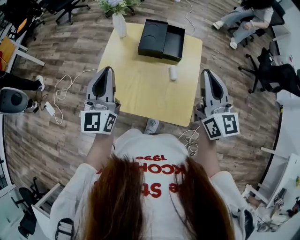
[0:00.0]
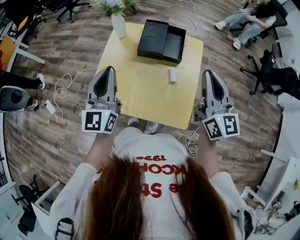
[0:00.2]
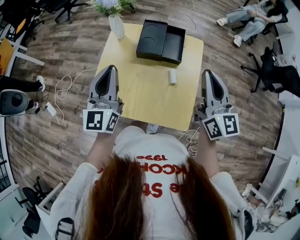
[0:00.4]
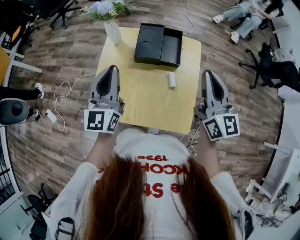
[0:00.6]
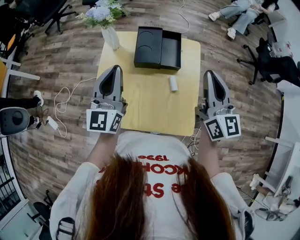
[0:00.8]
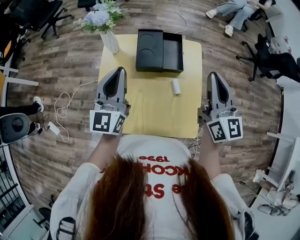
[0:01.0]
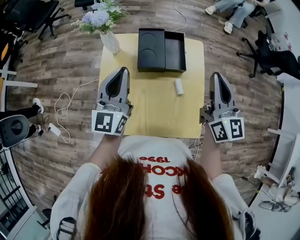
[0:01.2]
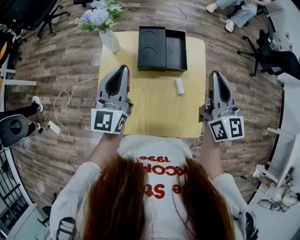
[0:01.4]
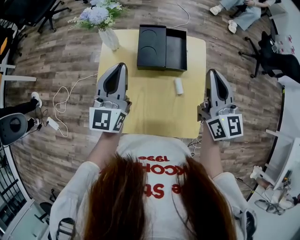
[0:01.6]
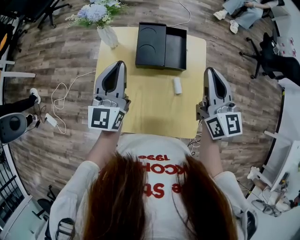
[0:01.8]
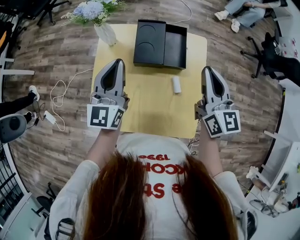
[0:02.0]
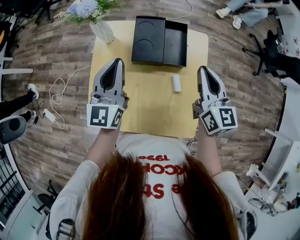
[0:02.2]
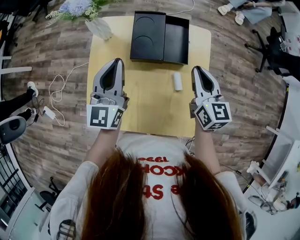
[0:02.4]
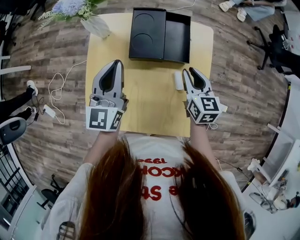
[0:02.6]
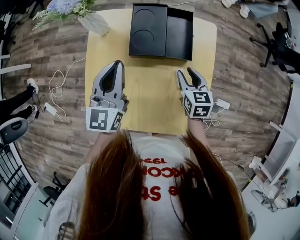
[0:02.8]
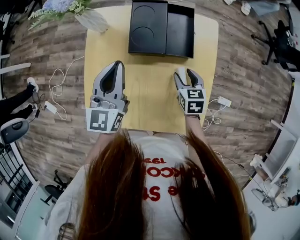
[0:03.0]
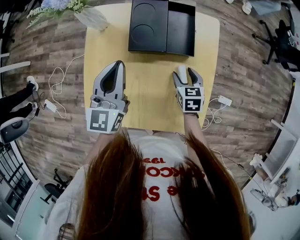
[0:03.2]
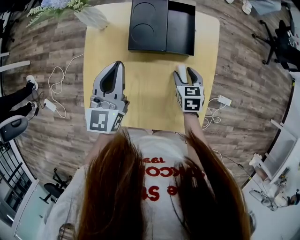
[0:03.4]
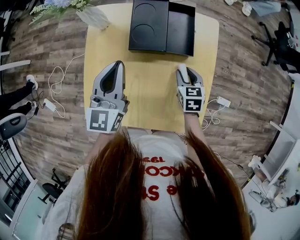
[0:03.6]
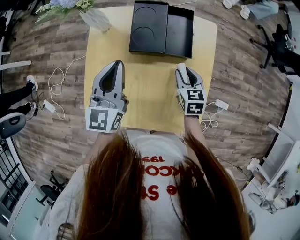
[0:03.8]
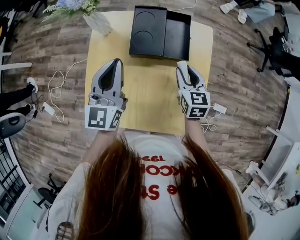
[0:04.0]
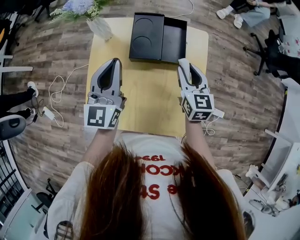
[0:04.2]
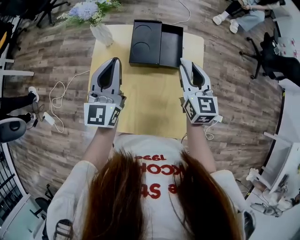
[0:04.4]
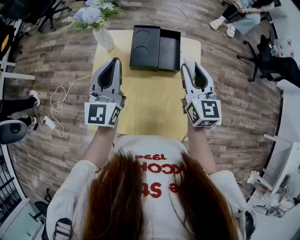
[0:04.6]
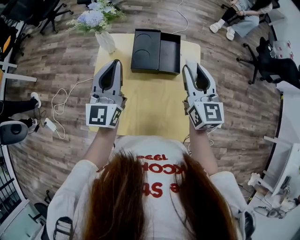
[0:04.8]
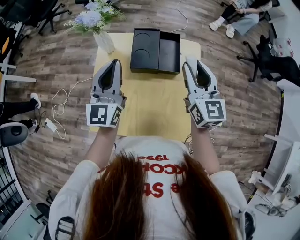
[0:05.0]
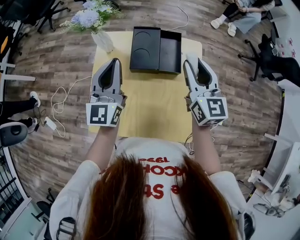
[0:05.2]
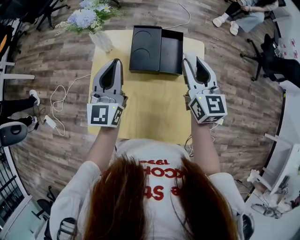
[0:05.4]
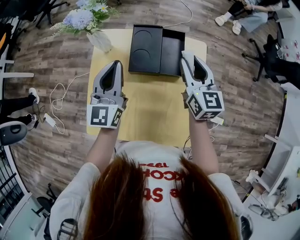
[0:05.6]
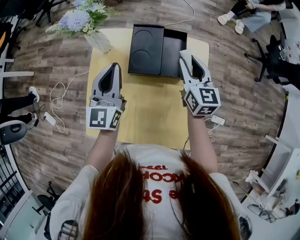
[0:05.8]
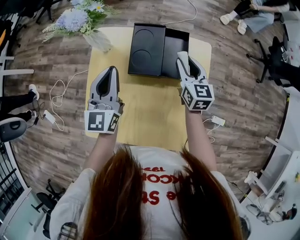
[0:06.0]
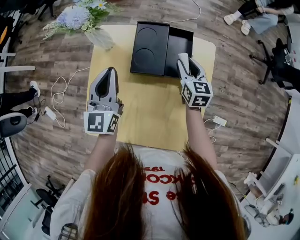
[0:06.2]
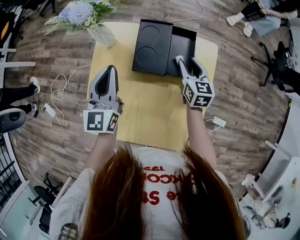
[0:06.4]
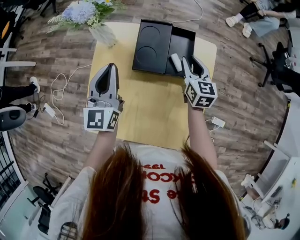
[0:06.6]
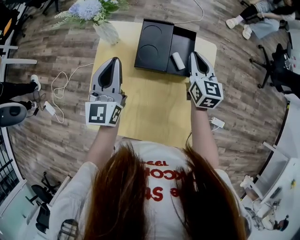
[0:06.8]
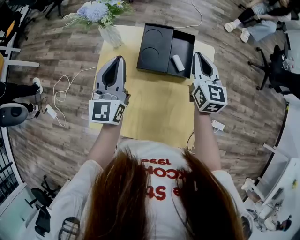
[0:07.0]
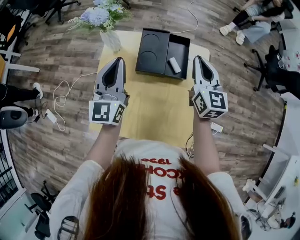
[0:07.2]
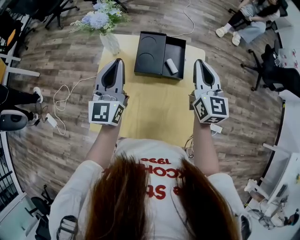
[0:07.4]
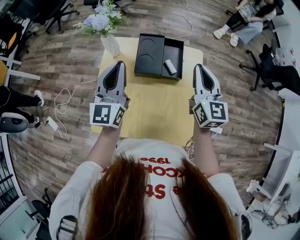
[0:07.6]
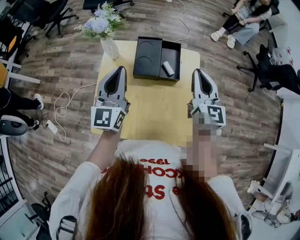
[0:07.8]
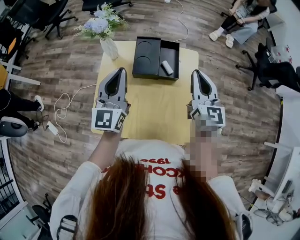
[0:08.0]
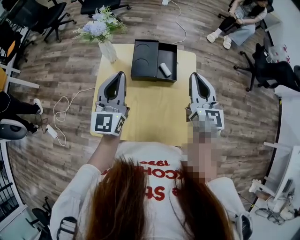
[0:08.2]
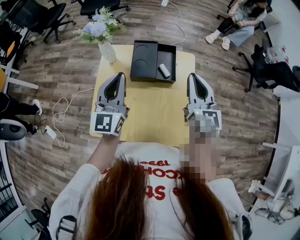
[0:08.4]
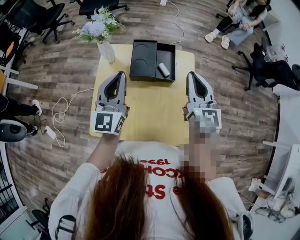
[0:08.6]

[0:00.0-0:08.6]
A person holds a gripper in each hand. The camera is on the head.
0:00.0 to 0:01.4: The left gripper is displaced forward by some 15 cm, while the right gripper heads forward, covering roughly 10 cm.
0:01.4 to 0:02.8: The left gripper goes approximately 10 cm downward. The right gripper goes roughly 30 cm downward, tips its fingers downward by some 40 degrees, and opens.
0:02.8 to 0:04.4: The left gripper shifts approximately 5 cm upward. The right gripper heads upward, covering about 15 cm, turns by about 20 degrees, and opens and closes again.
0:04.4 to 0:05.8: The right gripper moves forward, roughly 10 cm, and goes upward and returns, roughly 10 cm each way. Meanwhile the left gripper changes place by approximately 5 cm.
0:05.8 to 0:07.2: The right gripper moves upward, roughly 5 cm, and closes up. Meanwhile the left gripper moves roughly 5 cm.
0:07.2 to 0:08.6: The left gripper ends up about 5 cm from where it was; the right gripper travels backward and upward by some 10 cm.

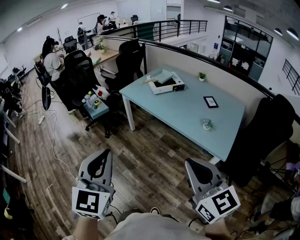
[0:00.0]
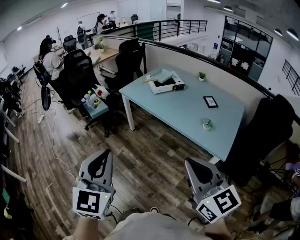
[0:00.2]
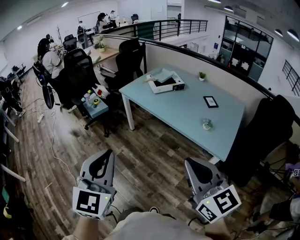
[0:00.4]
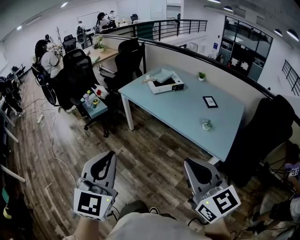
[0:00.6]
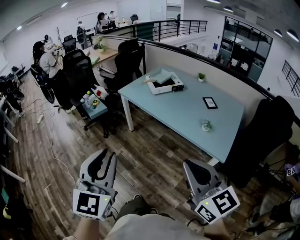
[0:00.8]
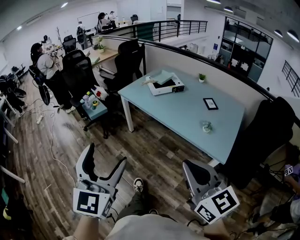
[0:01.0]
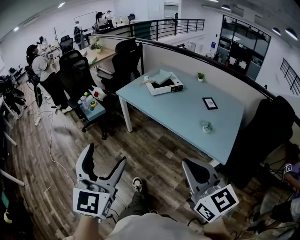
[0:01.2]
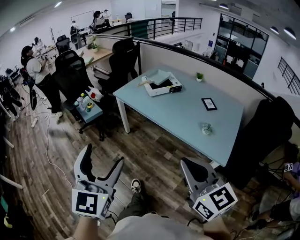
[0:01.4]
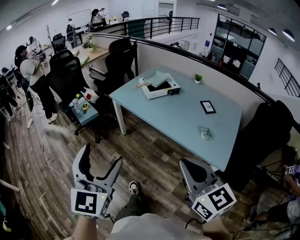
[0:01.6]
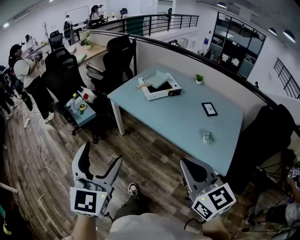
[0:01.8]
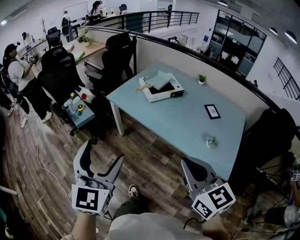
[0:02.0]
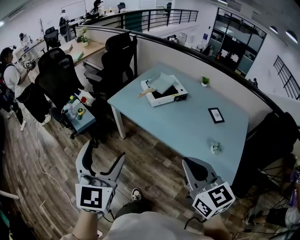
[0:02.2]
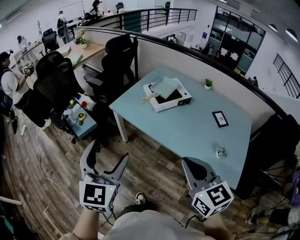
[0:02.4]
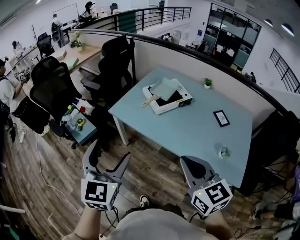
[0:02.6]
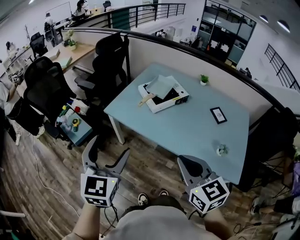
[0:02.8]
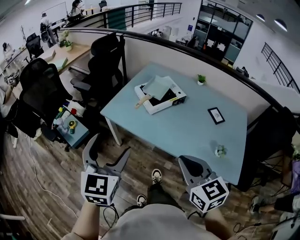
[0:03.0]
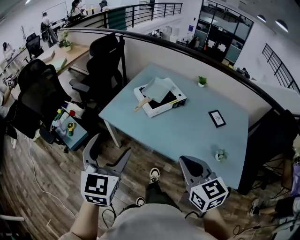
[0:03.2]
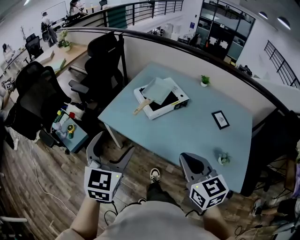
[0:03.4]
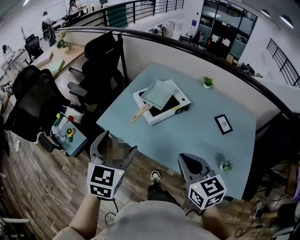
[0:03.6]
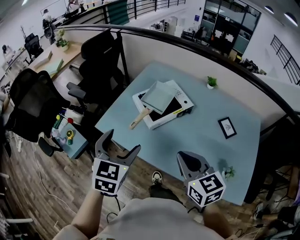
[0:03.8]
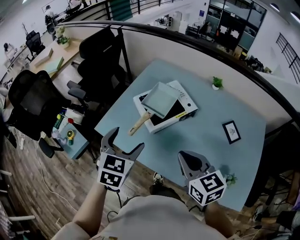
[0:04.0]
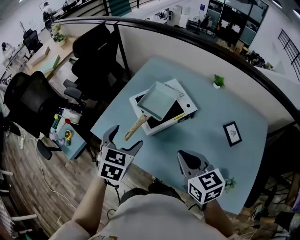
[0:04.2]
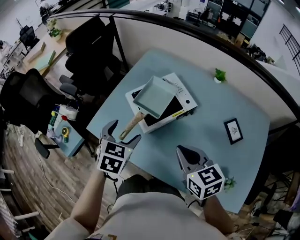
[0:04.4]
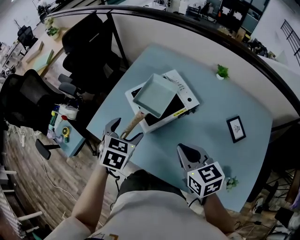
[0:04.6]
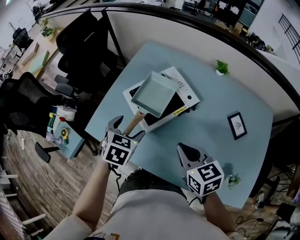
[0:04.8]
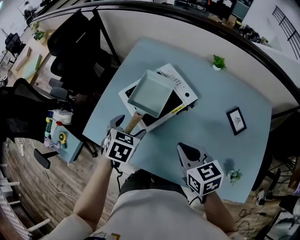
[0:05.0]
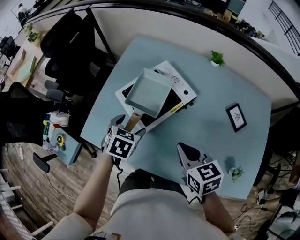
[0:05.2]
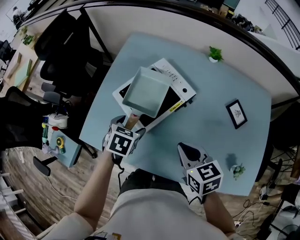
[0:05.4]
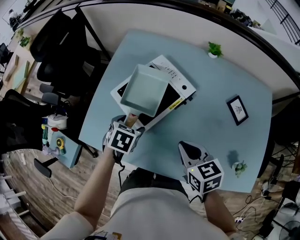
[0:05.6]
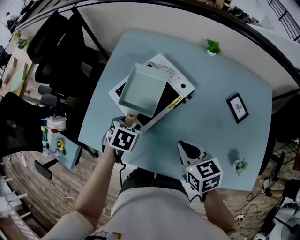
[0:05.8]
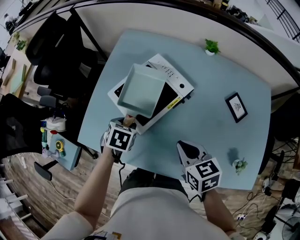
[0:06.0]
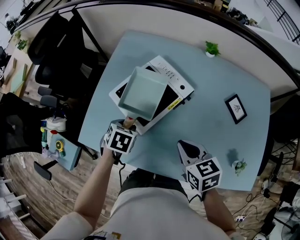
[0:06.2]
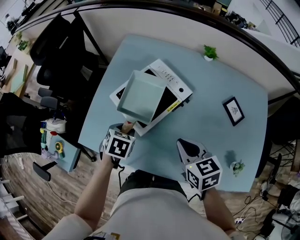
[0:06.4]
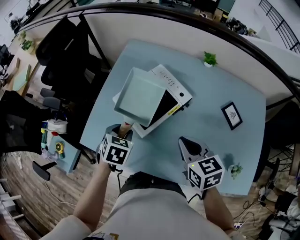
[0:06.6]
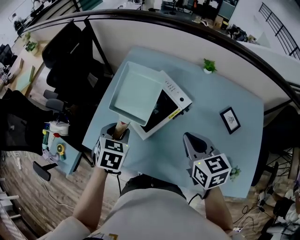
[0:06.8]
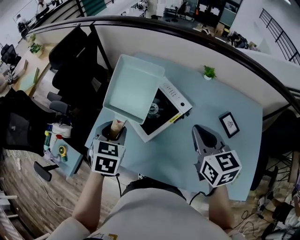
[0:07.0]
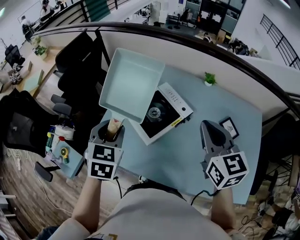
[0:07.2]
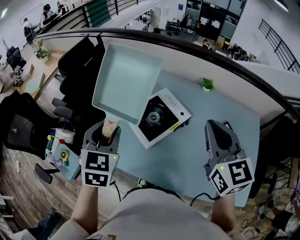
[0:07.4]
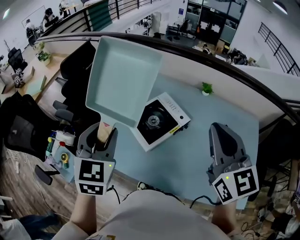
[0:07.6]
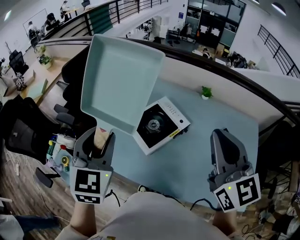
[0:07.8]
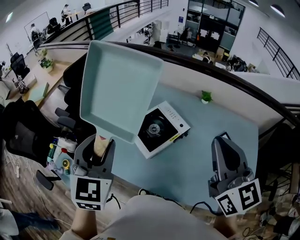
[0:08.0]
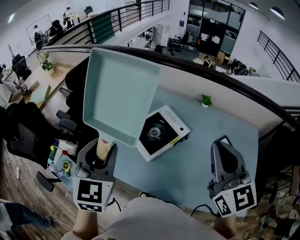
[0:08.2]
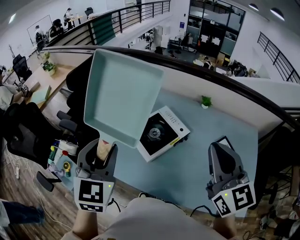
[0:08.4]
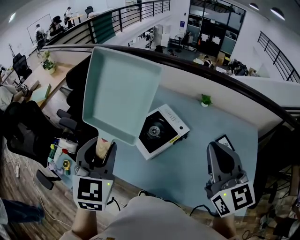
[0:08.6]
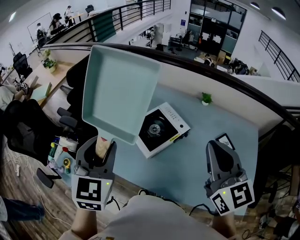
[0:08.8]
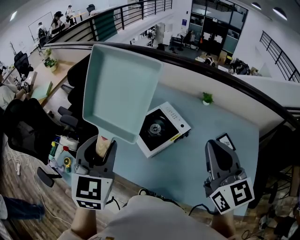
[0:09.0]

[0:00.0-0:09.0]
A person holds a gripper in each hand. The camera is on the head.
0:00.0 to 0:01.6: The two grippers go some 15 cm forward. The left gripper opens.
0:01.6 to 0:03.0: Both grippers move forward, approximately 35 cm.
0:03.0 to 0:04.4: The right gripper goes about 30 cm forward; the left gripper is displaced forward, downward and to the right by approximately 40 cm, and tilts its fingers about 30 degrees downward.
0:04.4 to 0:06.0: The left gripper goes about 20 cm downward and forward, changes its angle by approximately 30 degrees, and closes, while the right gripper travels downward by some 10 cm.
0:06.0 to 0:07.6: Both grippers move upward, about 35 cm. The right gripper points its fingers some 40 degrees further upward; the left gripper tips its fingers upward by about 40 degrees.
0:07.6 to 0:09.0: The left gripper moves approximately 5 cm.

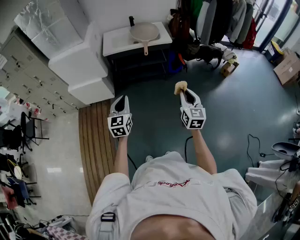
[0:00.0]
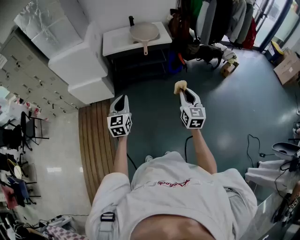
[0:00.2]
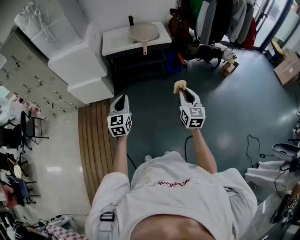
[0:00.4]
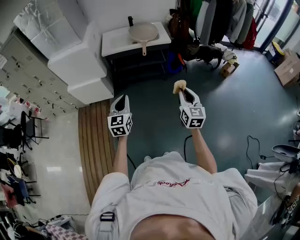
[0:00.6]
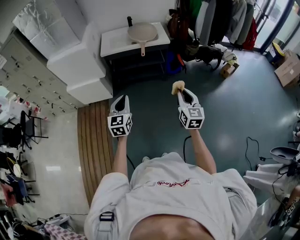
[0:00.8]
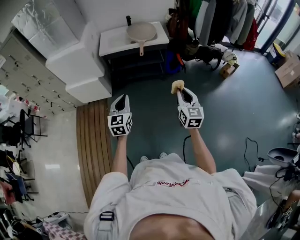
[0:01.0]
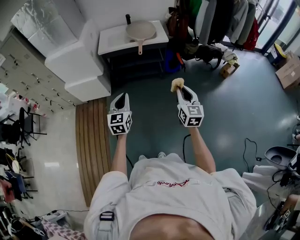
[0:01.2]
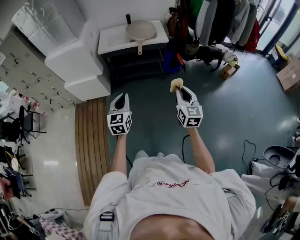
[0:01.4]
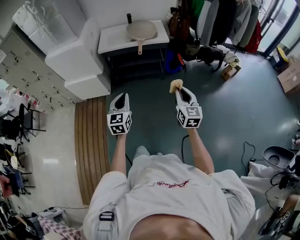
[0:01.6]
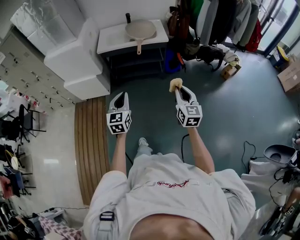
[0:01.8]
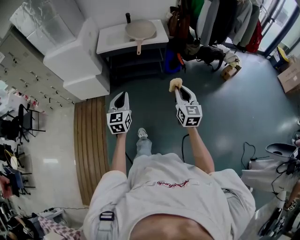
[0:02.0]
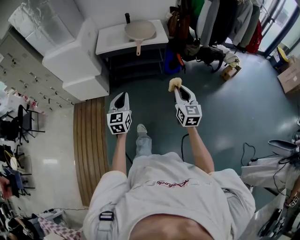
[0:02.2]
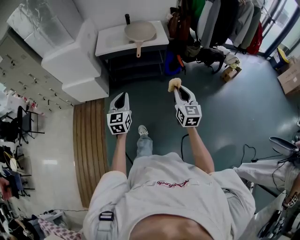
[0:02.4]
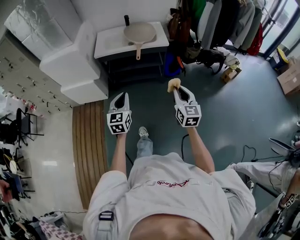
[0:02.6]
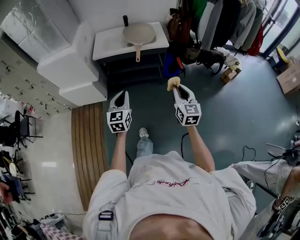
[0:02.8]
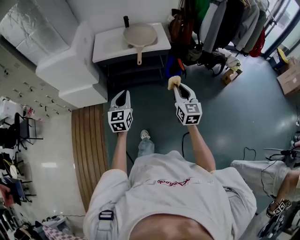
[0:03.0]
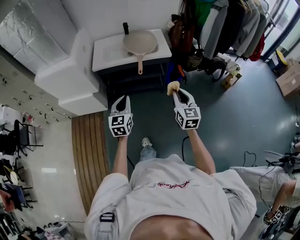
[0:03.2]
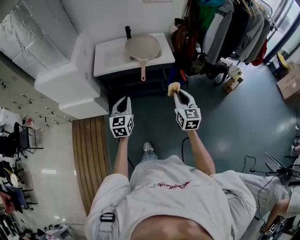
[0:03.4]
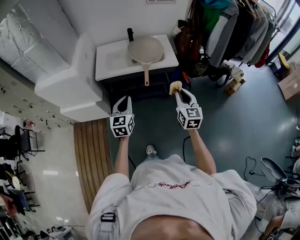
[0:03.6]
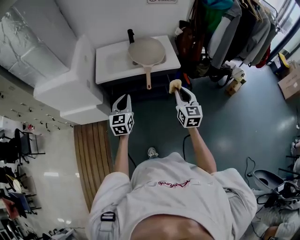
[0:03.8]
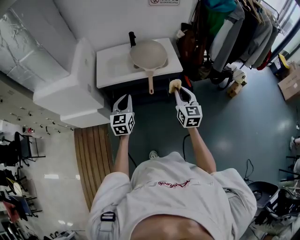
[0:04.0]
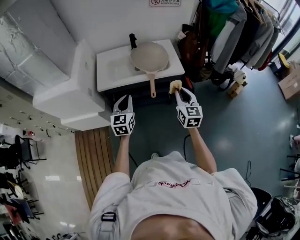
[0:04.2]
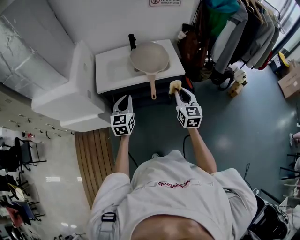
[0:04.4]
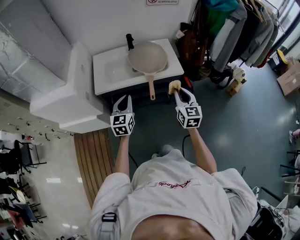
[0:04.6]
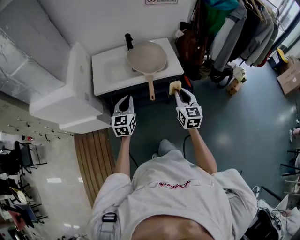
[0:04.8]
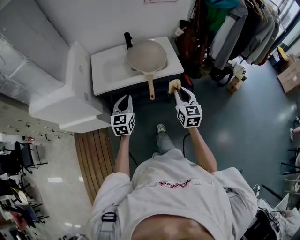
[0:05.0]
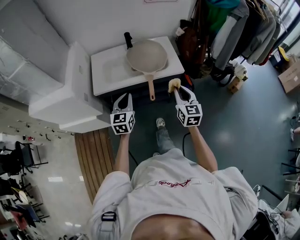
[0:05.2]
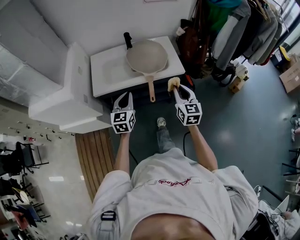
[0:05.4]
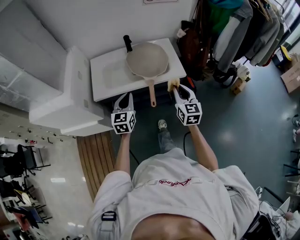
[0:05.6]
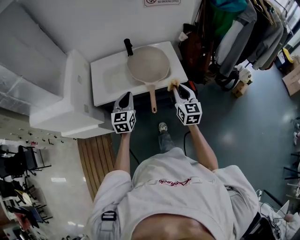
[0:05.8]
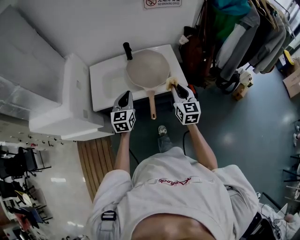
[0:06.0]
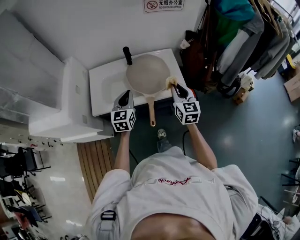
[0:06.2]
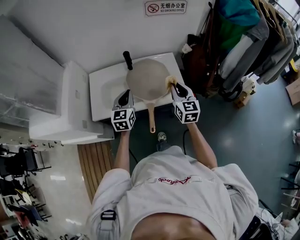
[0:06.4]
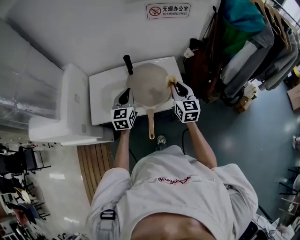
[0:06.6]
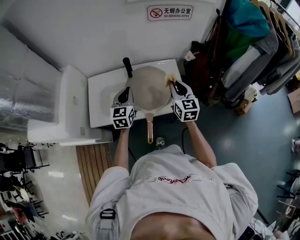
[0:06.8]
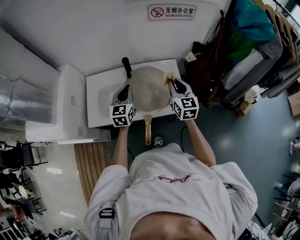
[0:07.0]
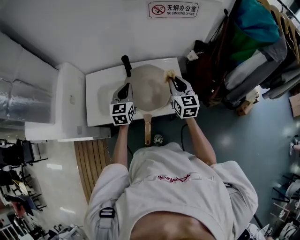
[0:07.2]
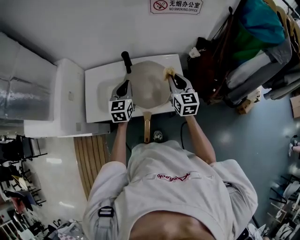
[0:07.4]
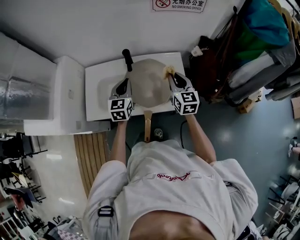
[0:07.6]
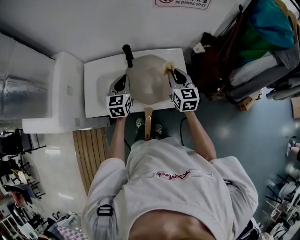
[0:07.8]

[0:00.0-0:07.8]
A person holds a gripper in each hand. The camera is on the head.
0:00.0 to 0:01.6: The two grippers go some 5 cm to the right.
0:01.6 to 0:03.2: Both grippers move forward, some 20 cm.
0:03.2 to 0:04.6: The grippers both shift forward by roughly 25 cm.
0:04.6 to 0:06.2: The grippers both shift forward by roughly 20 cm.
0:06.2 to 0:07.8: Both grippers travel together forward, about 20 cm.
